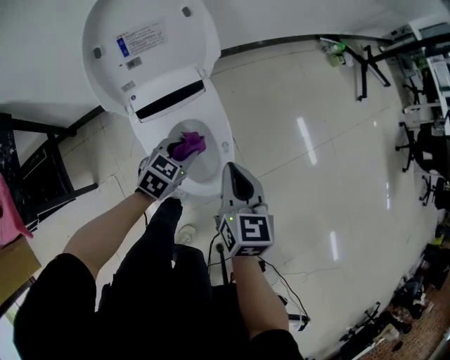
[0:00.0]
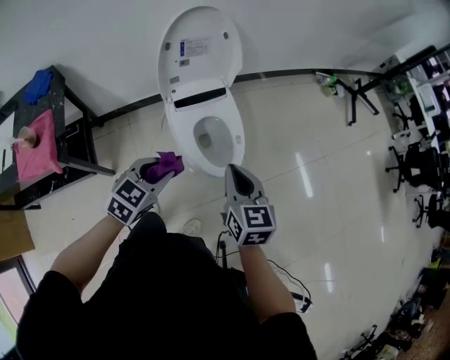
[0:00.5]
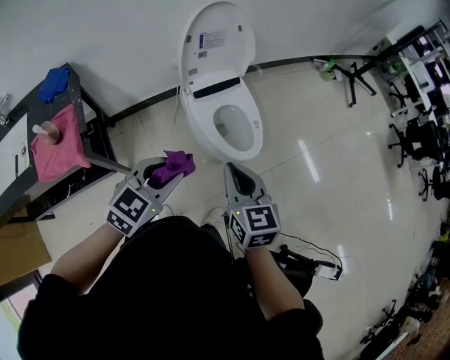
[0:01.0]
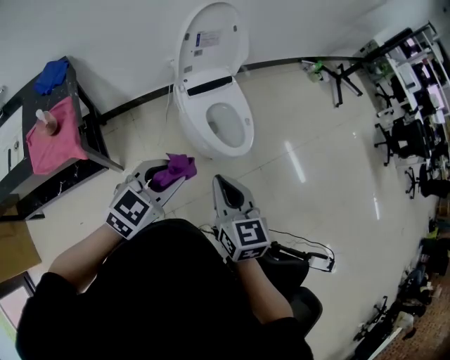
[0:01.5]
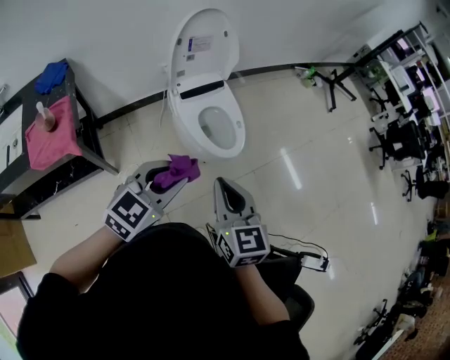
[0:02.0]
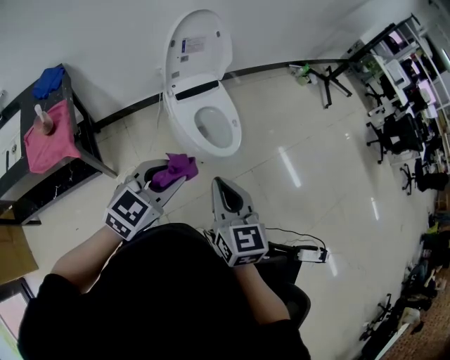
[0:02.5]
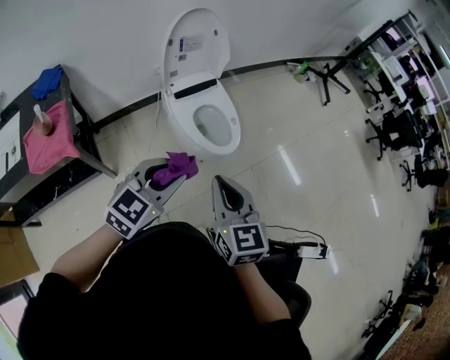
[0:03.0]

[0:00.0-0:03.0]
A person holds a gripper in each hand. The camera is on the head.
0:00.0 to 0:01.5: The pair of grippers is taken backward, some 40 cm. The right gripper moves upward, approximately 20 cm, while the left gripper moves upward, about 30 cm, and rotates about 20 degrees.
0:01.5 to 0:03.0: The left gripper ends up about 5 cm from where it was, while the right gripper shifts by roughly 5 cm.

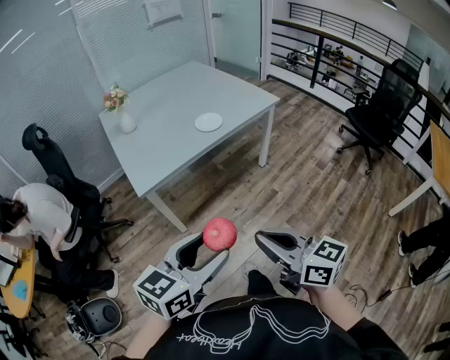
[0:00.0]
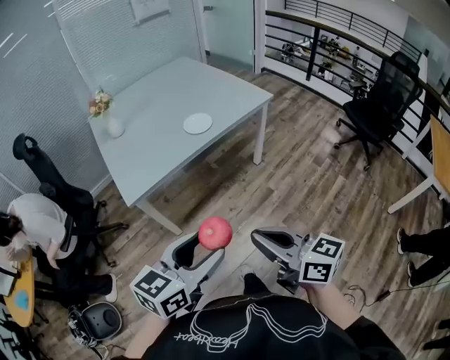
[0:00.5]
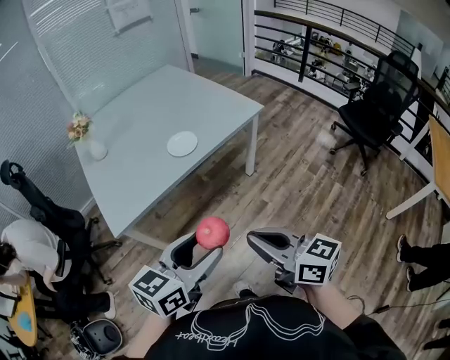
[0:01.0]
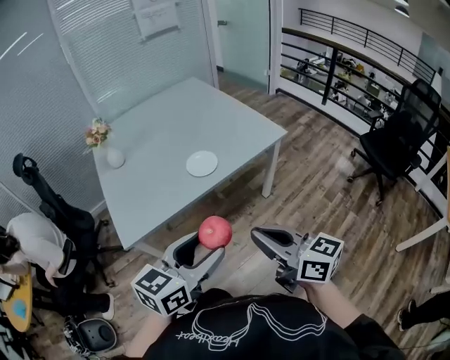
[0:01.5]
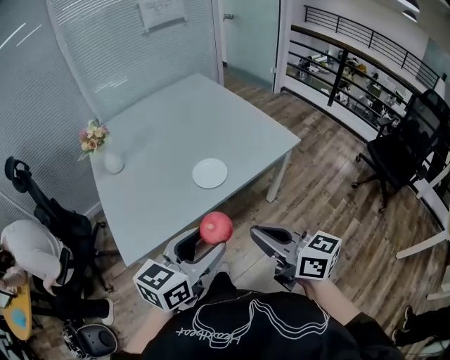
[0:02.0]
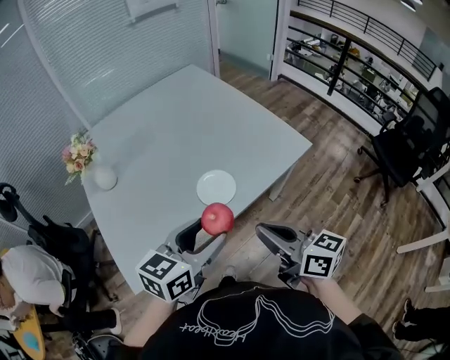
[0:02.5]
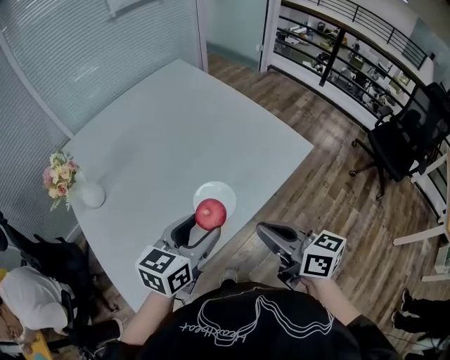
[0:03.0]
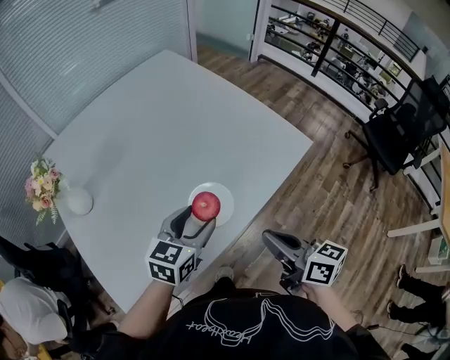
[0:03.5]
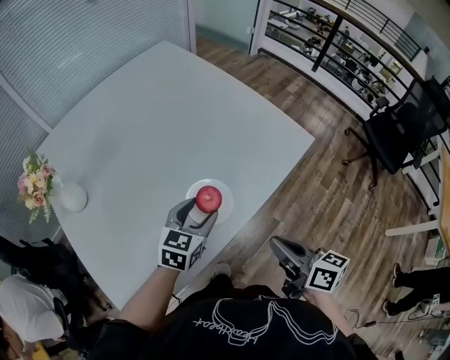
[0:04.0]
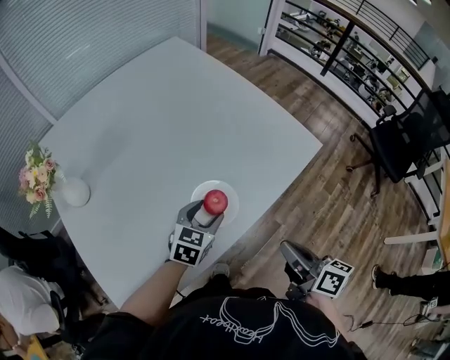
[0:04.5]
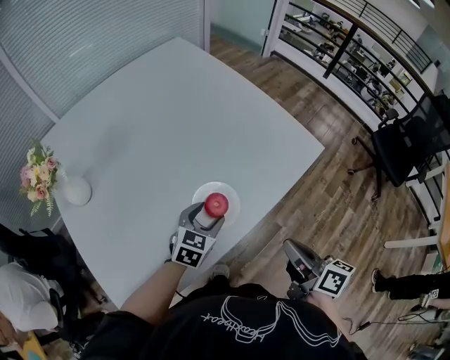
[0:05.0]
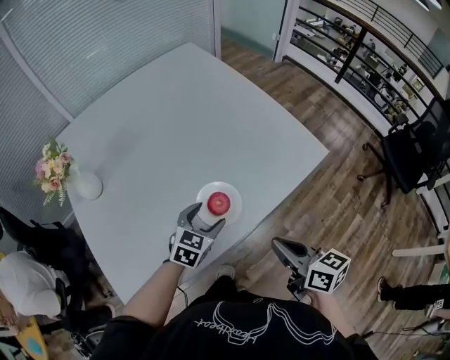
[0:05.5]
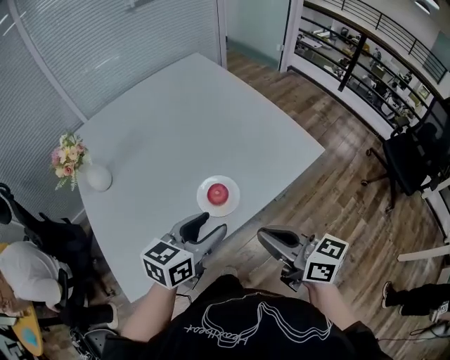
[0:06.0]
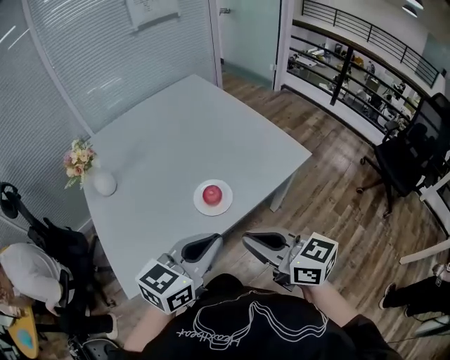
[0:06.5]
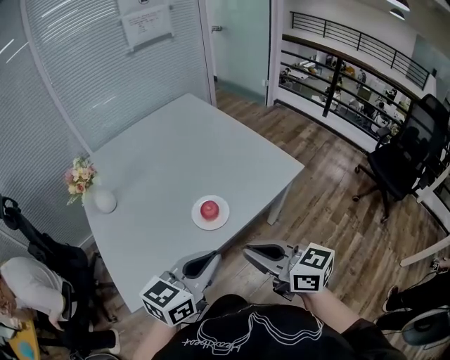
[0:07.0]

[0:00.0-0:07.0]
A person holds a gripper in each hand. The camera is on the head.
0:00.0 to 0:02.0: The two grippers go roughly 40 cm forward.
0:02.0 to 0:03.5: The right gripper is displaced forward and downward by approximately 25 cm, and turns by about 20 degrees. Meanwhile the left gripper travels forward by roughly 35 cm.
0:03.5 to 0:05.0: The left gripper moves downward, some 10 cm. Meanwhile the right gripper is displaced to the right by about 5 cm.
0:05.0 to 0:07.0: The left gripper travels upward and backward by some 35 cm, changes its angle by about 30 degrees, and closes its fingers, while the right gripper moves upward, backward and to the left, some 20 cm, and rotates about 50 degrees.

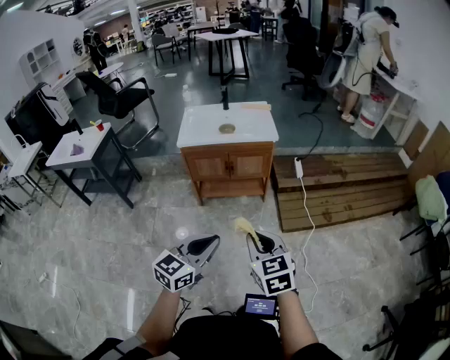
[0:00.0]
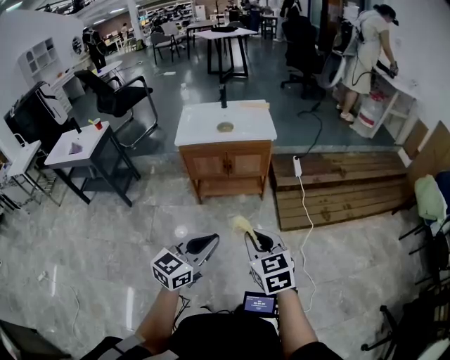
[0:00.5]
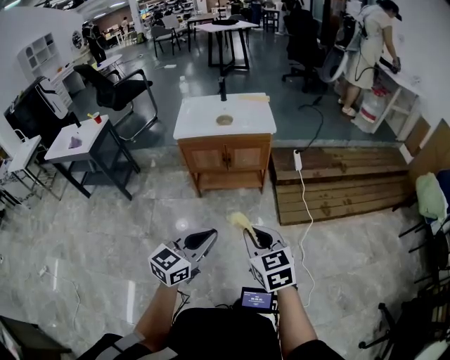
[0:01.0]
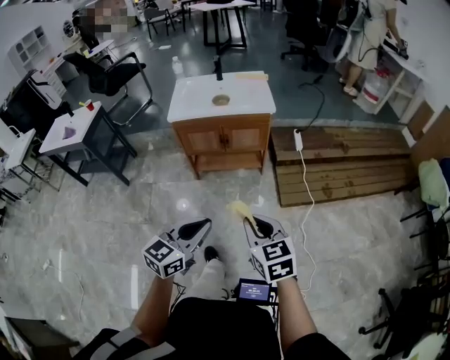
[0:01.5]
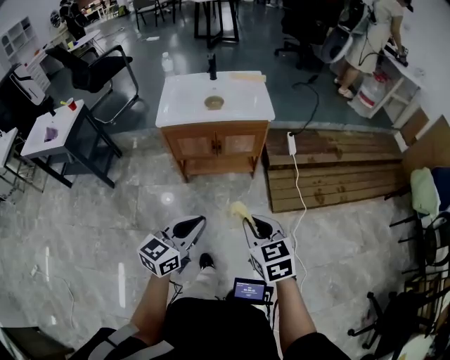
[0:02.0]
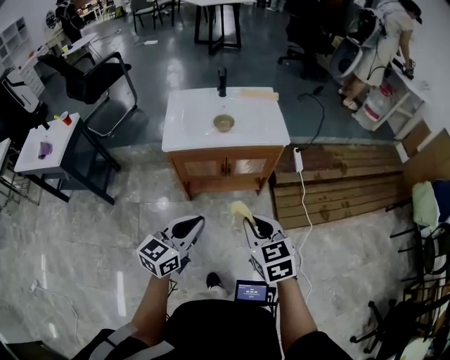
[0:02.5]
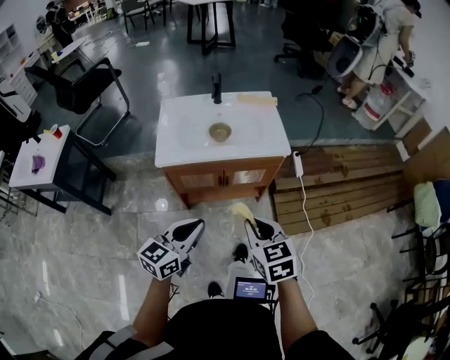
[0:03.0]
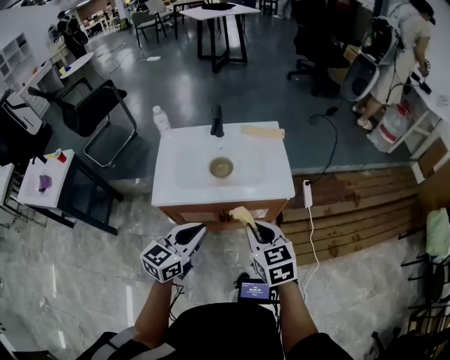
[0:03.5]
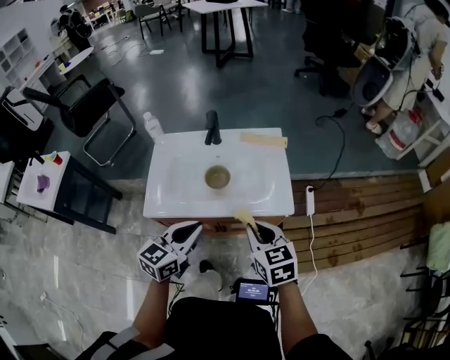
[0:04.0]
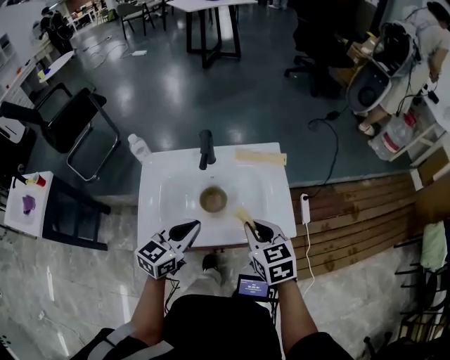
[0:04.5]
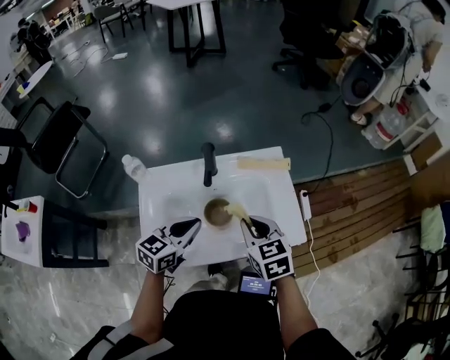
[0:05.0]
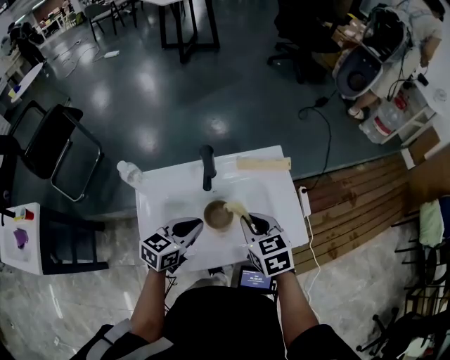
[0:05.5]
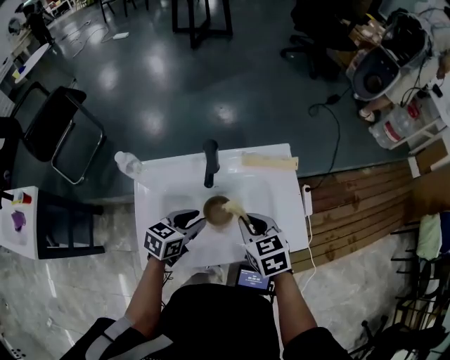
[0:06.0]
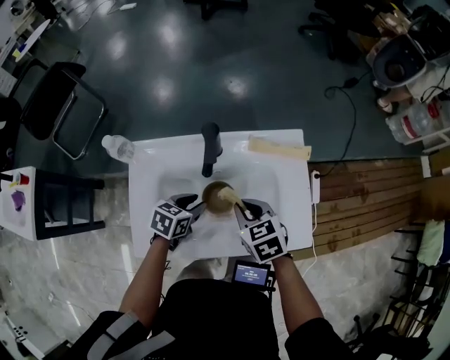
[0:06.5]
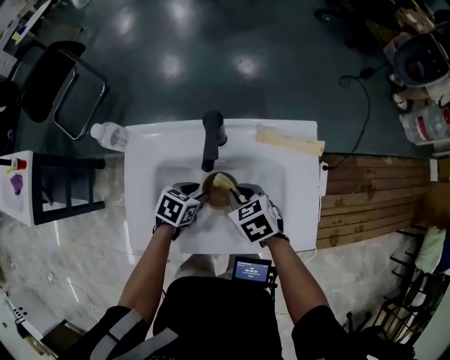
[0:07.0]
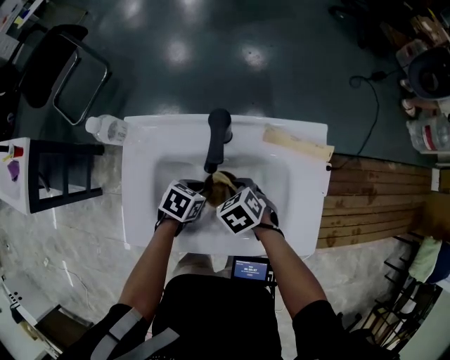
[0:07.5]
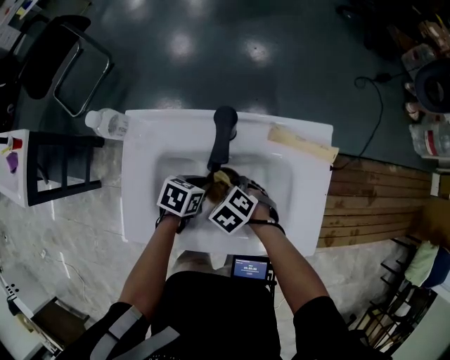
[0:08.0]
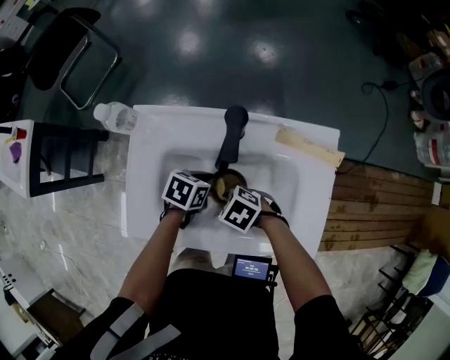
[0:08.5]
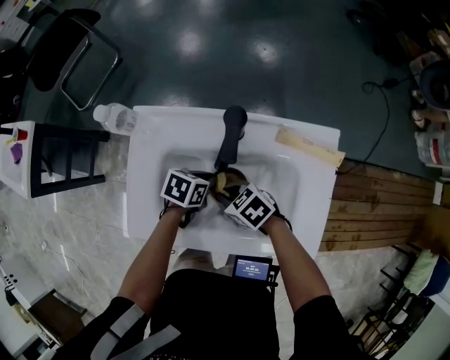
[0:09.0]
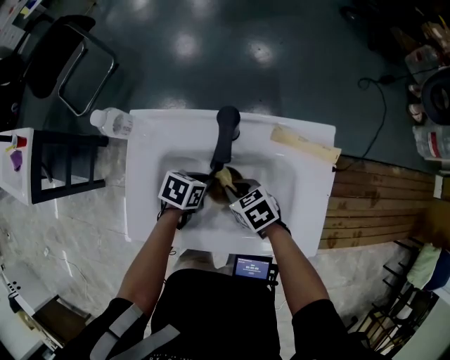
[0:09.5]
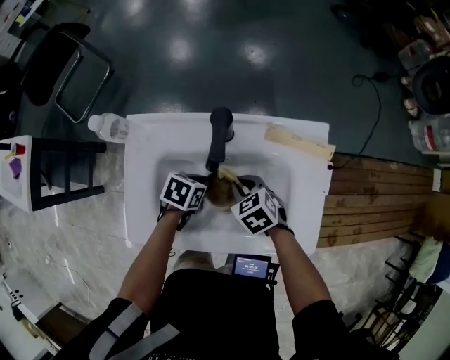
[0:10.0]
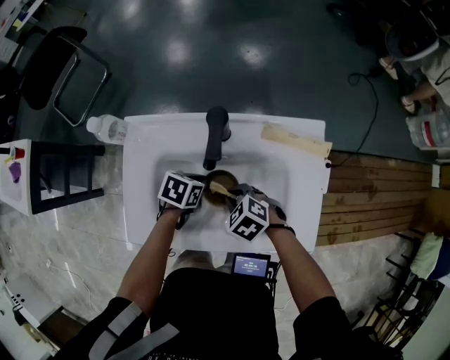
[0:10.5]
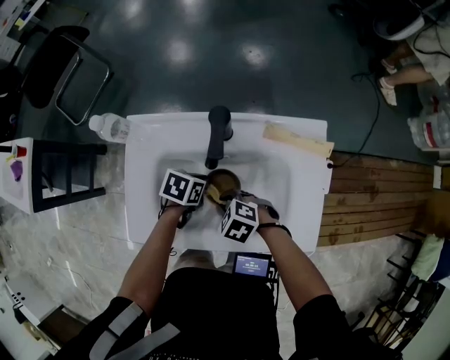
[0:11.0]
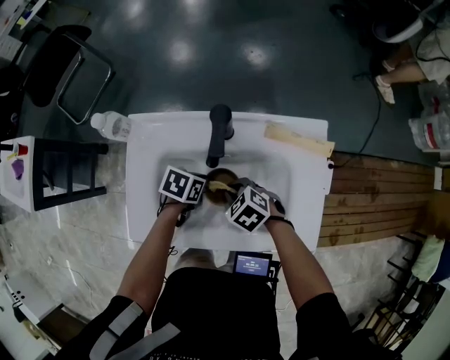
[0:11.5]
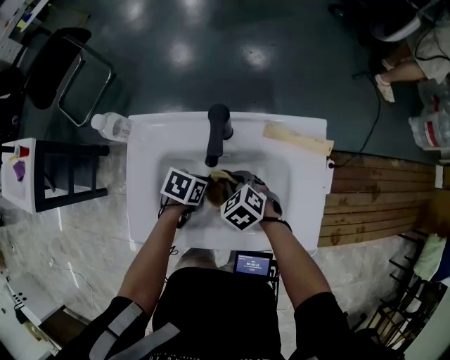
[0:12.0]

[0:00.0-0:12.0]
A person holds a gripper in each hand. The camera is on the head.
0:00.0 to 0:02.0: The two grippers go approximately 10 cm forward.
0:02.0 to 0:04.0: Both grippers are carried forward, about 50 cm.
0:04.0 to 0:06.0: The left gripper is displaced forward, downward and to the left by approximately 25 cm, turns by some 30 degrees, and opens up; the right gripper moves forward and to the left, approximately 20 cm.
0:06.0 to 0:08.0: The two grippers go approximately 15 cm downward. The right gripper points its fingers approximately 30 degrees further downward. Meanwhile the left gripper swivels approximately 30 degrees.
0:08.0 to 0:10.0: The right gripper turns by some 20 degrees.

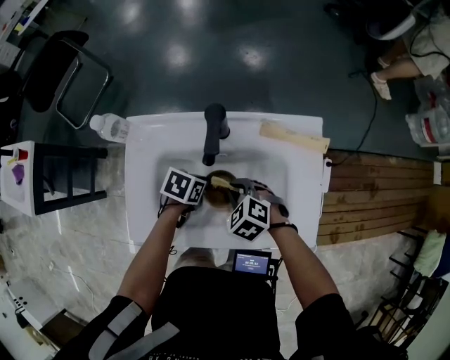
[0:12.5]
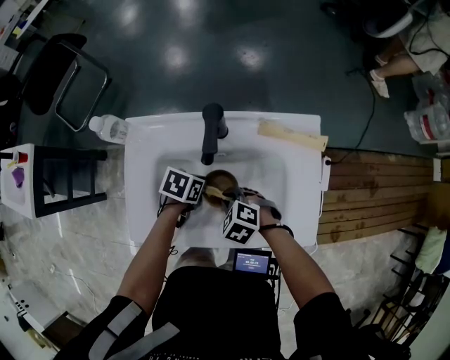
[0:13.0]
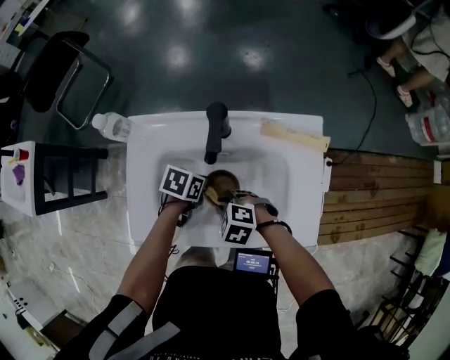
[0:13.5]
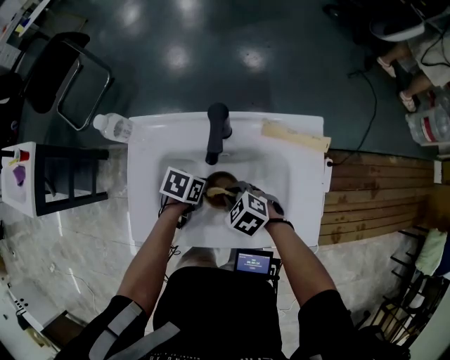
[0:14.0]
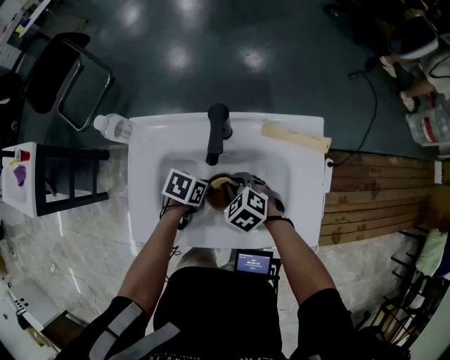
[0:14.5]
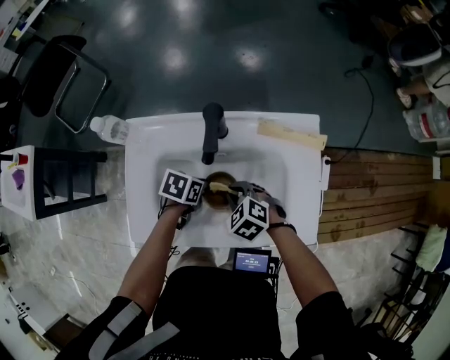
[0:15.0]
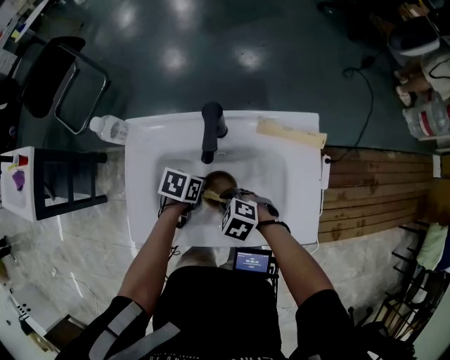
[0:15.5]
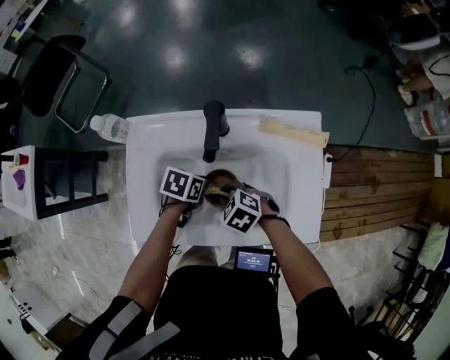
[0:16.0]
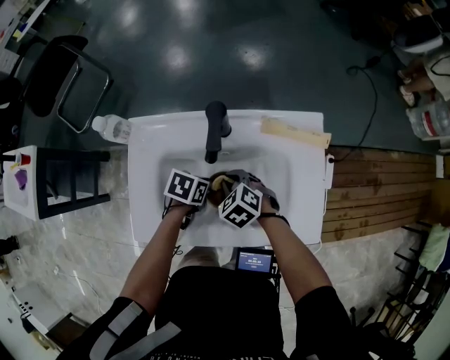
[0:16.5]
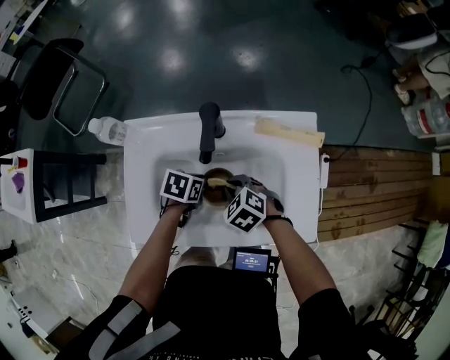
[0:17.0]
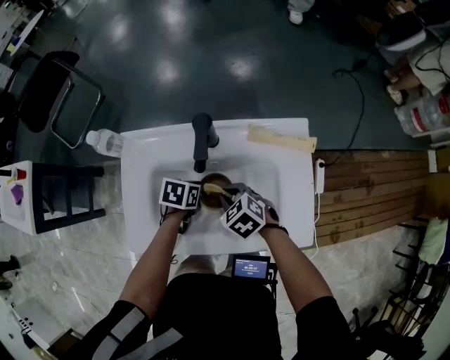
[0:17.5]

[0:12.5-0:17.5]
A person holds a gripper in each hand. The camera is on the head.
0:15.0 to 0:17.5: The grippers make only small movements.
